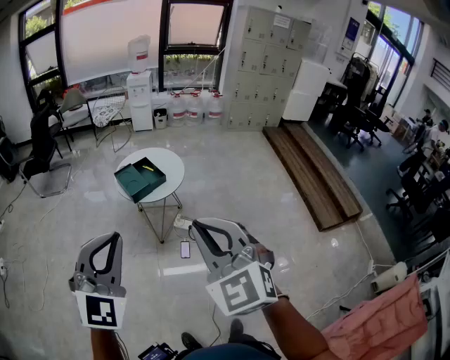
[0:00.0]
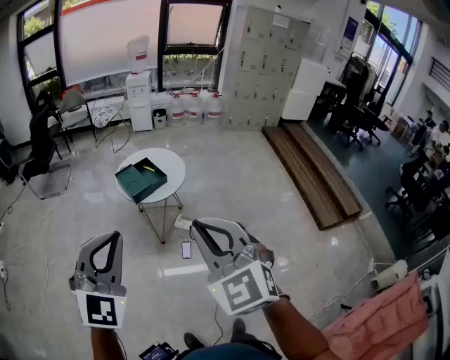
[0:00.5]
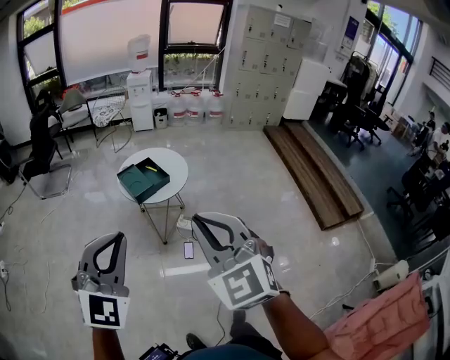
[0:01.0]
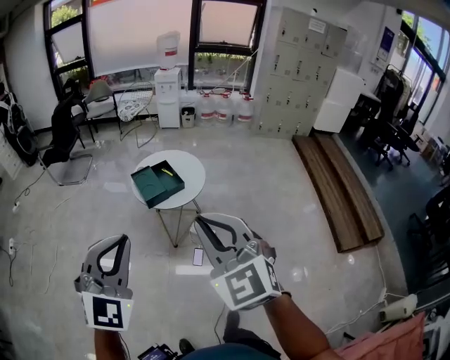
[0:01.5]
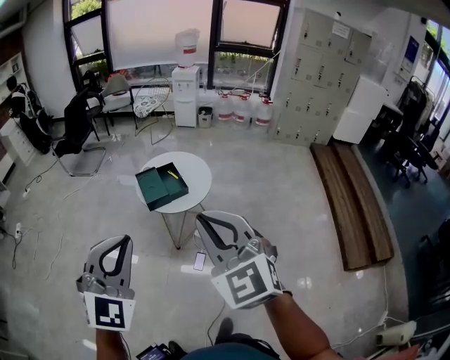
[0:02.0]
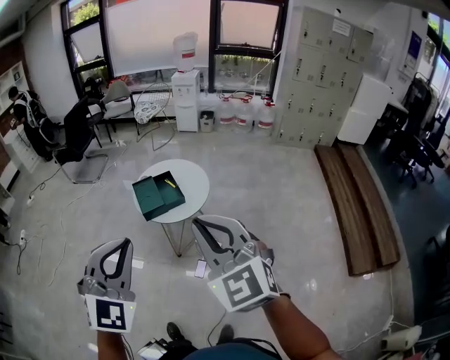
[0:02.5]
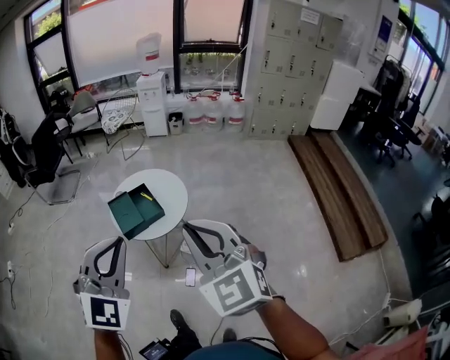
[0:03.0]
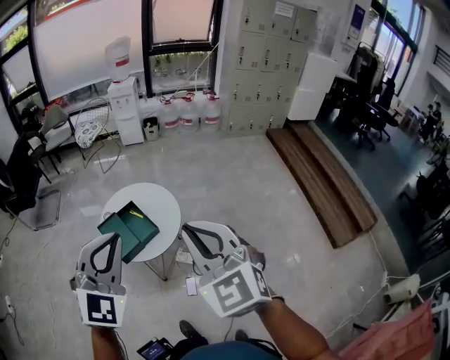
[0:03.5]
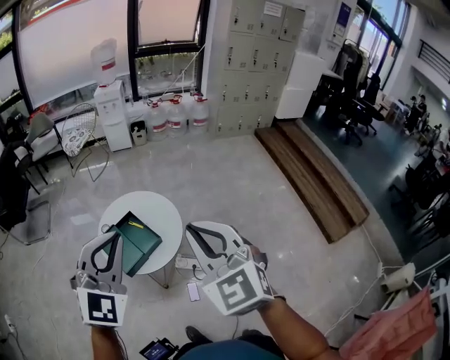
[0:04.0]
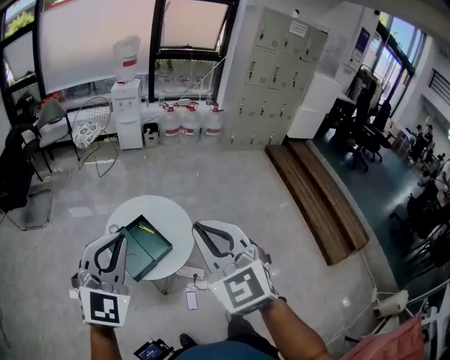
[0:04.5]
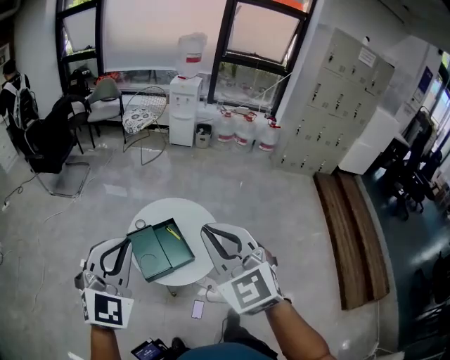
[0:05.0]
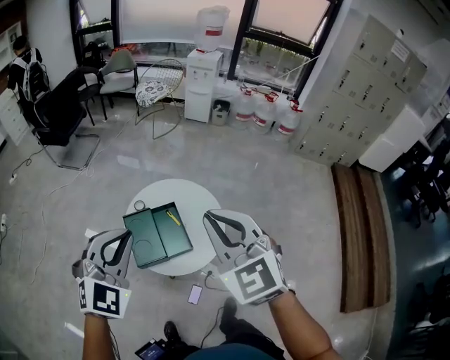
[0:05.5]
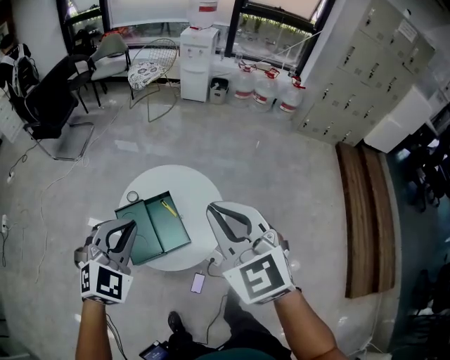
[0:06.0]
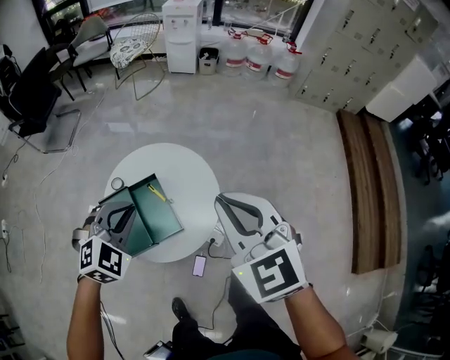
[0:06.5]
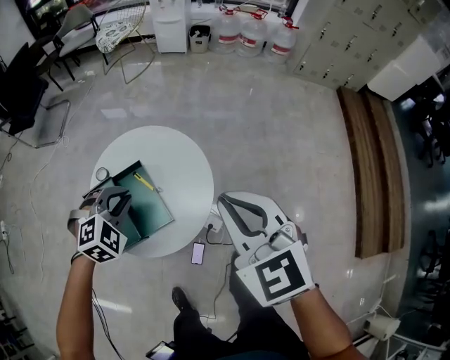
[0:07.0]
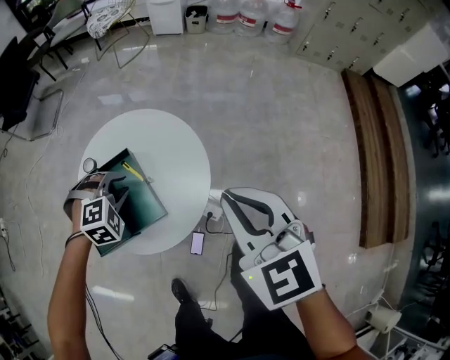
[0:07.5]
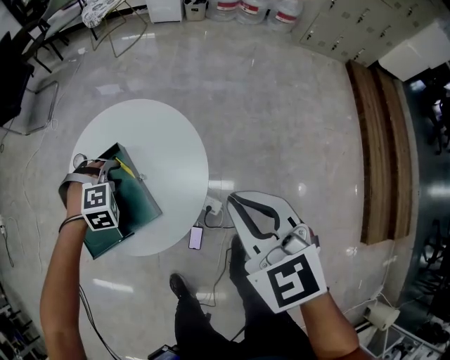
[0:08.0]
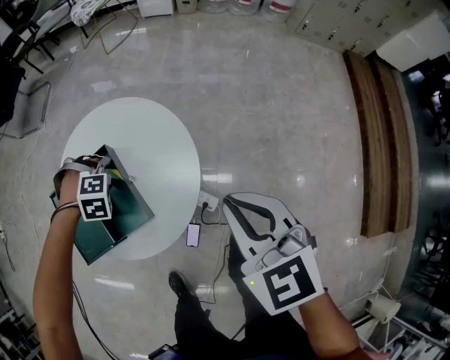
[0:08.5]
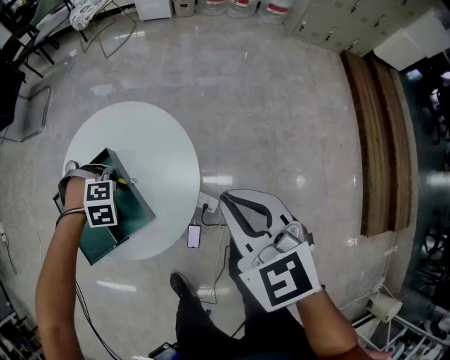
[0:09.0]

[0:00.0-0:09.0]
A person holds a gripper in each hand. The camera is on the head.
0:00.0 to 0:02.0: Both grippers move forward and to the right, about 30 cm.
0:02.0 to 0:04.5: Both grippers are carried forward, approximately 50 cm.
0:04.5 to 0:07.0: The two grippers travel together, forward and to the right, about 40 cm. Both grippers travel together downward, approximately 50 cm. The left gripper points its fingers roughly 50 degrees further downward. Meanwhile the right gripper changes its angle by some 30 degrees.
0:07.0 to 0:09.0: The grippers both shift downward by some 20 cm. The left gripper turns by approximately 40 degrees, and opens and closes again.

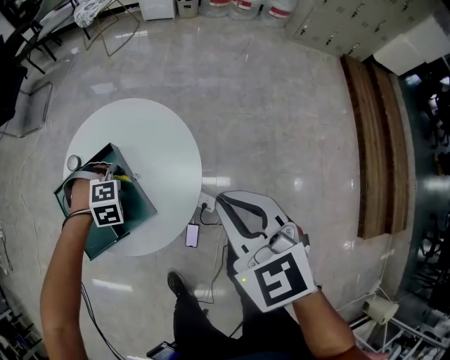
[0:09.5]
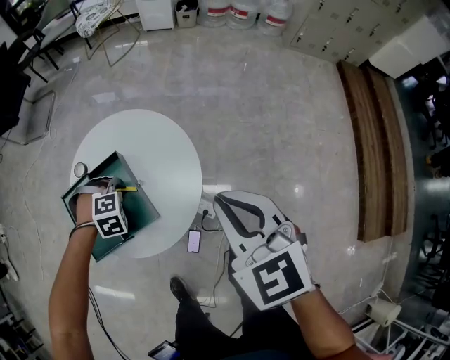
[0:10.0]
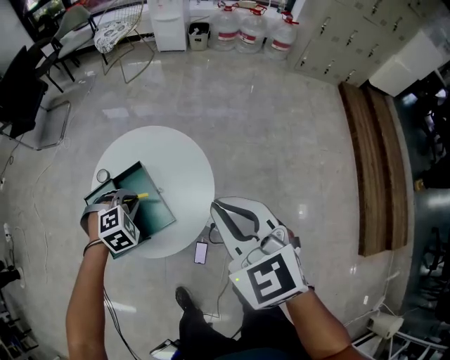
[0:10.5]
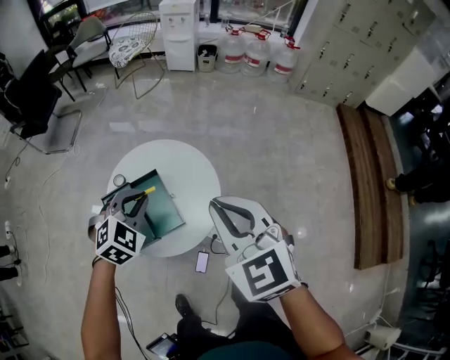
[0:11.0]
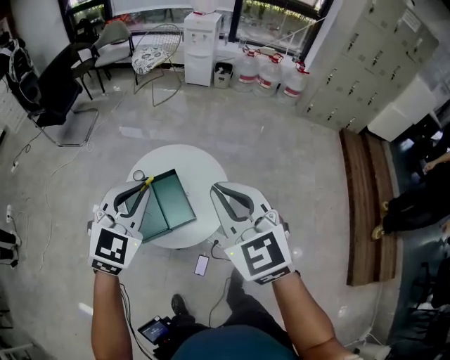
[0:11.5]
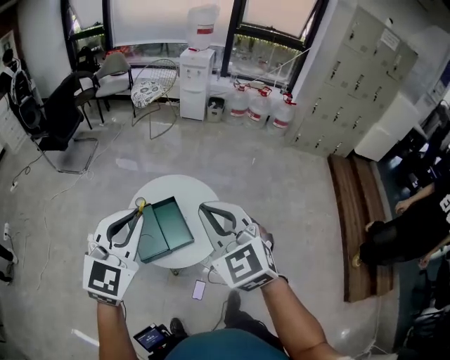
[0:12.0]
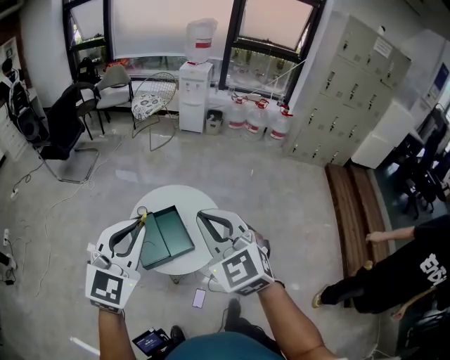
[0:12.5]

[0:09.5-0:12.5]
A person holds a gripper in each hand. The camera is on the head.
0:09.5 to 0:11.0: Both grippers move upward, about 30 cm. The left gripper tips its fingers upward by roughly 30 degrees.
0:11.0 to 0:12.5: The left gripper travels upward and backward by roughly 40 cm, and angles its fingers upward, by some 40 degrees. Meanwhile the right gripper travels upward, backward and to the left by approximately 30 cm.

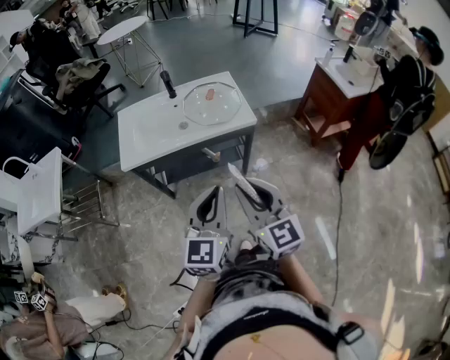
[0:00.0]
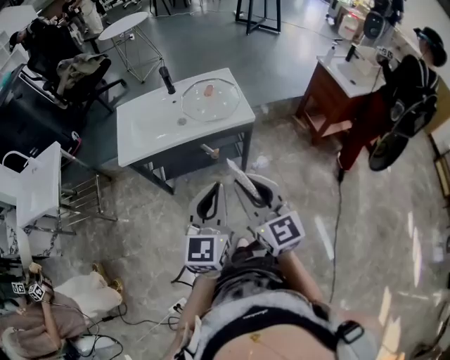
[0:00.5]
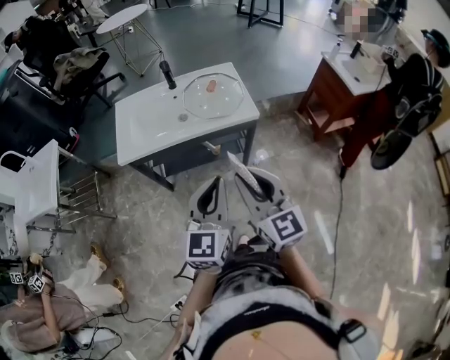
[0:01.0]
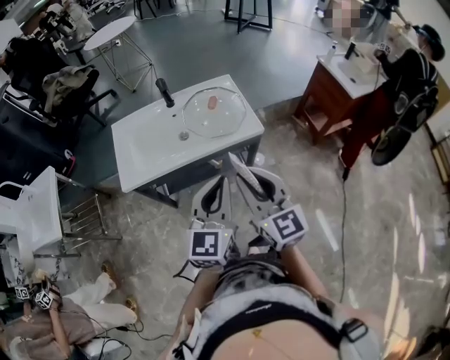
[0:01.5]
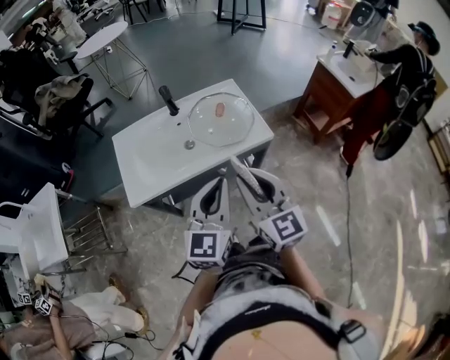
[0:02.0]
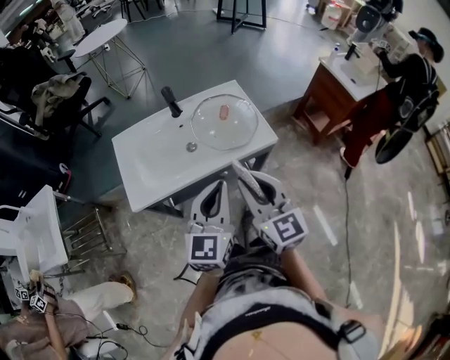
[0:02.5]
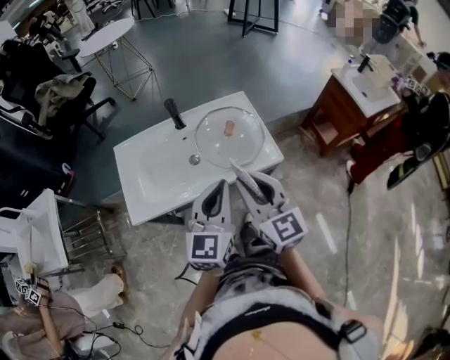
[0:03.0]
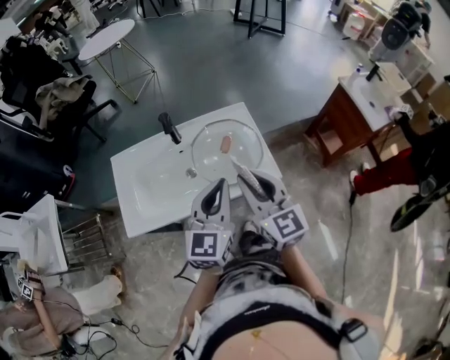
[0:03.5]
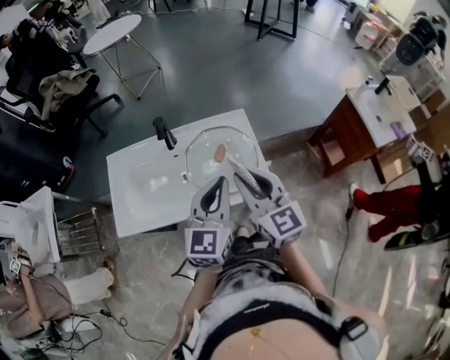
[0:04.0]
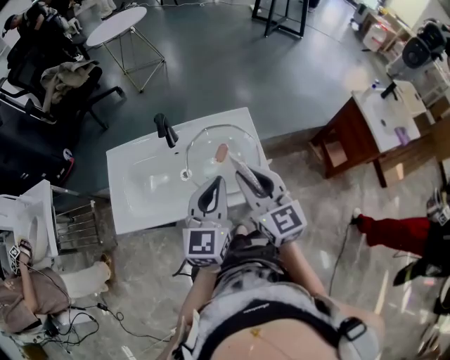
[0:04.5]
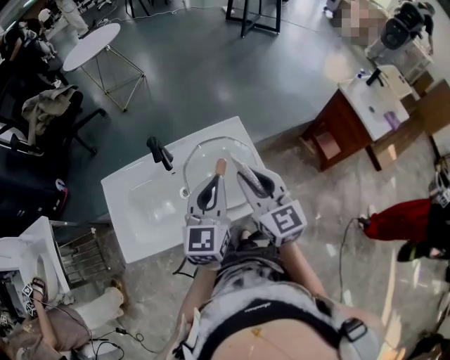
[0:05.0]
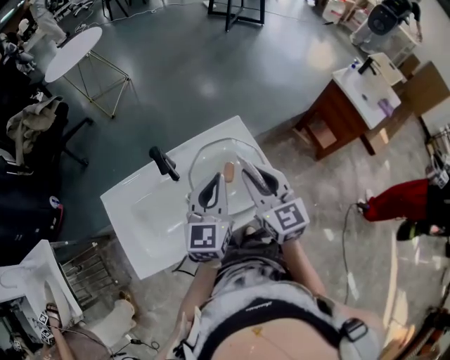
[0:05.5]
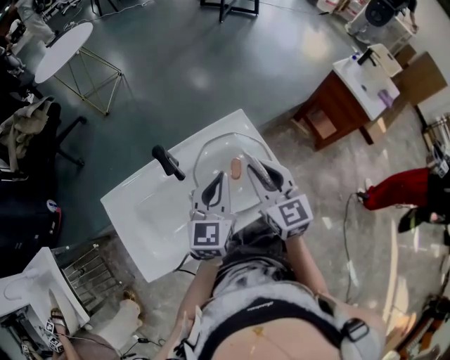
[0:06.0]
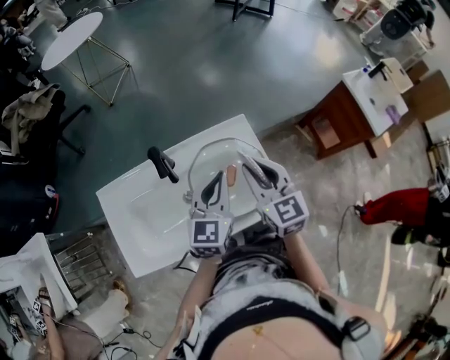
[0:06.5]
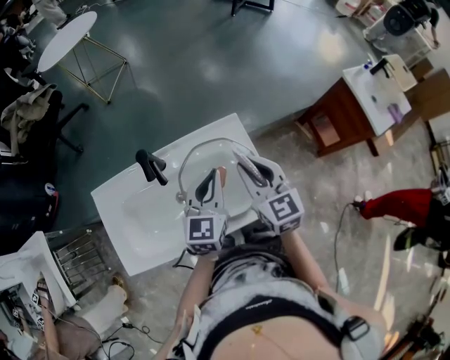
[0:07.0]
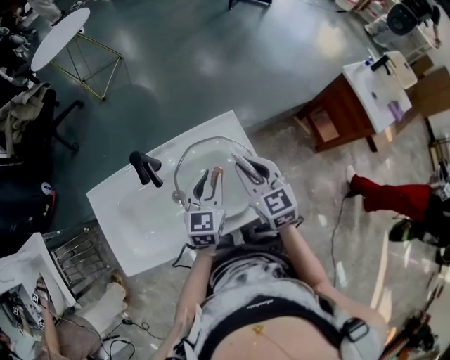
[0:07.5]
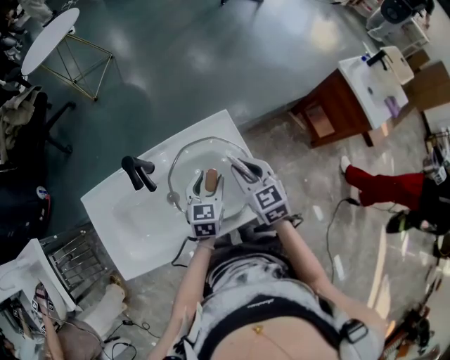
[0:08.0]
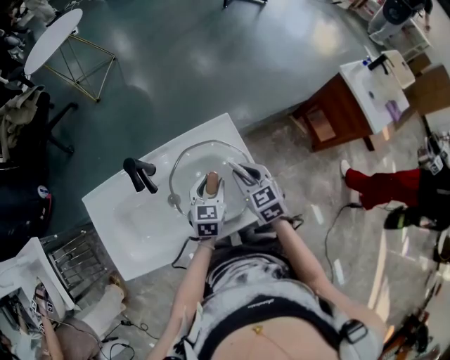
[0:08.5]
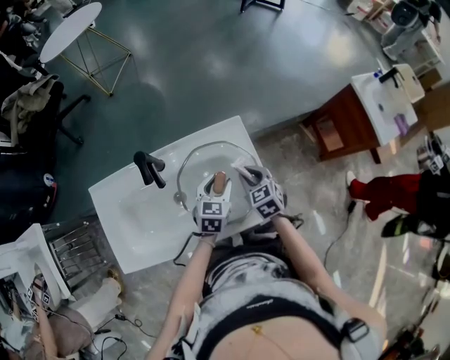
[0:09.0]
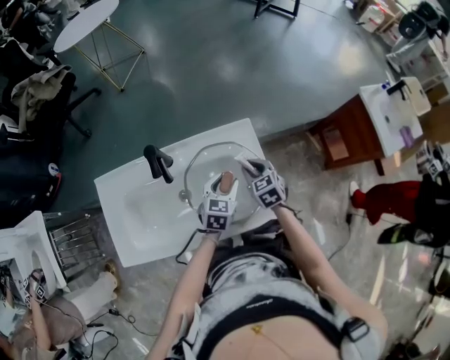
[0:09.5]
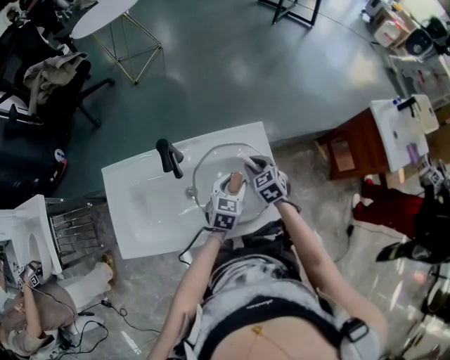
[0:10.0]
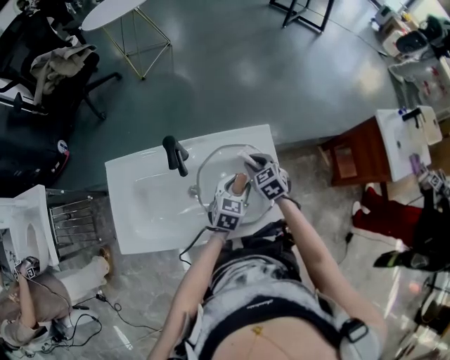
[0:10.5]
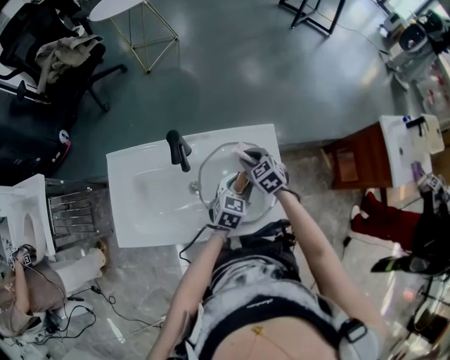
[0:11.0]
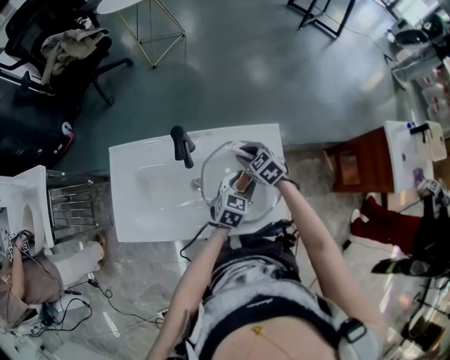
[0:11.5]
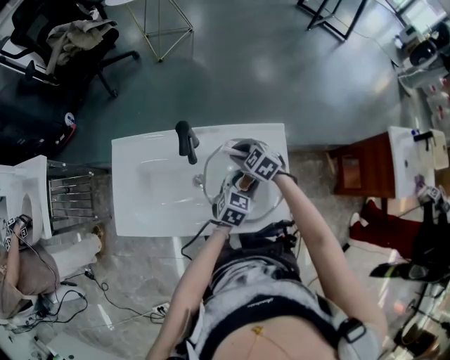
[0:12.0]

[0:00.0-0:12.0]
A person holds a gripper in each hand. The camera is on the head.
0:00.0 to 0:02.0: The left gripper goes approximately 20 cm forward, while the right gripper is displaced forward and to the left by about 20 cm.
0:02.0 to 0:04.0: Both grippers move forward, some 25 cm.
0:04.0 to 0:06.0: The right gripper heads forward and downward, covering roughly 15 cm, and rotates roughly 20 degrees; the left gripper moves forward, to the left and downward, approximately 15 cm.
0:06.0 to 0:08.0: The right gripper heads downward, forward and to the right, covering roughly 15 cm. The left gripper moves downward, approximately 15 cm, changes its angle by some 20 degrees, and opens.
0:08.0 to 0:10.0: The right gripper travels downward by some 10 cm, and rotates approximately 20 degrees.
0:10.0 to 0:12.0: The right gripper travels to the left by about 10 cm, and turns by some 30 degrees.

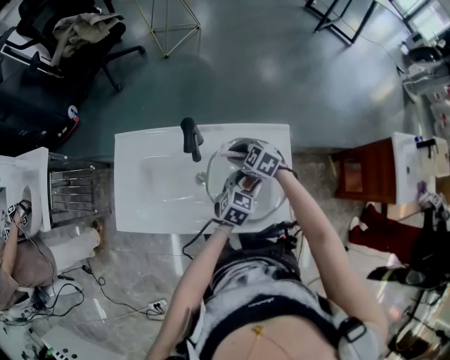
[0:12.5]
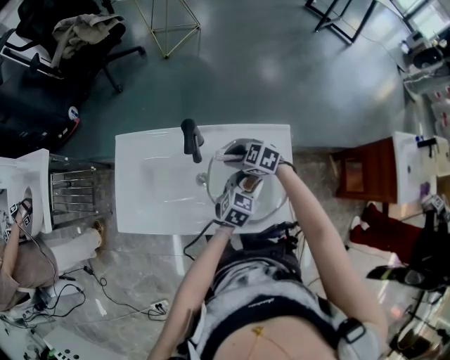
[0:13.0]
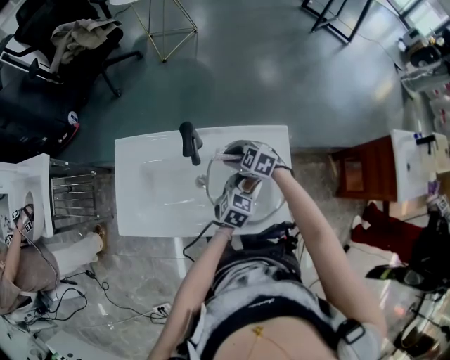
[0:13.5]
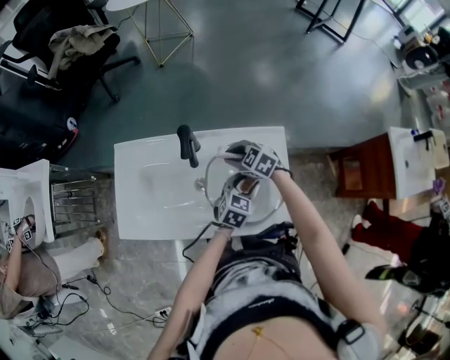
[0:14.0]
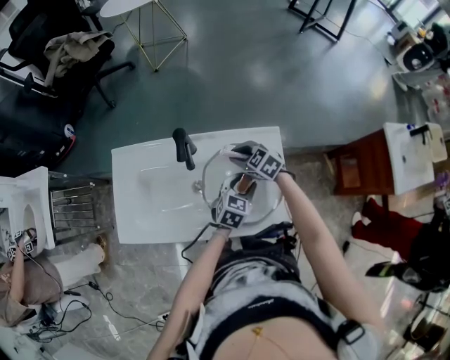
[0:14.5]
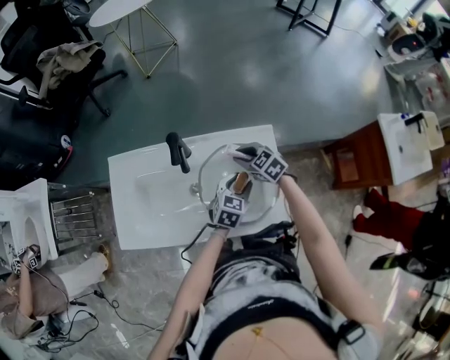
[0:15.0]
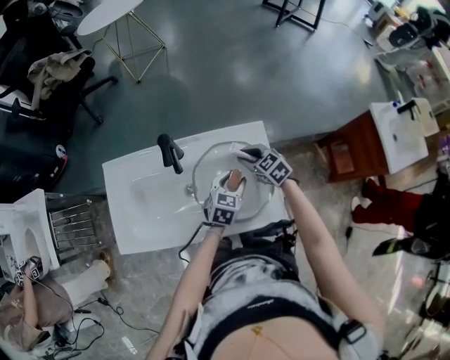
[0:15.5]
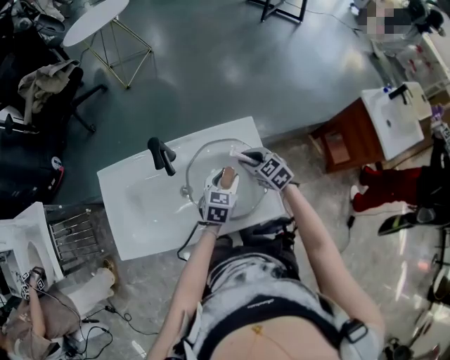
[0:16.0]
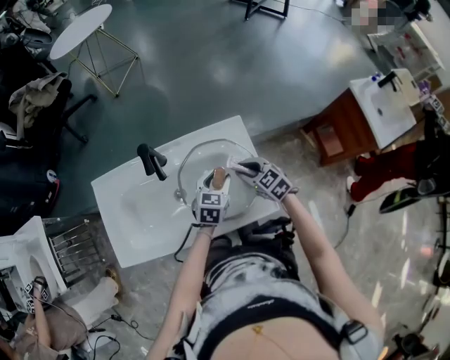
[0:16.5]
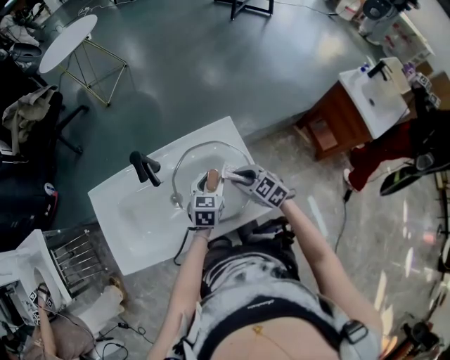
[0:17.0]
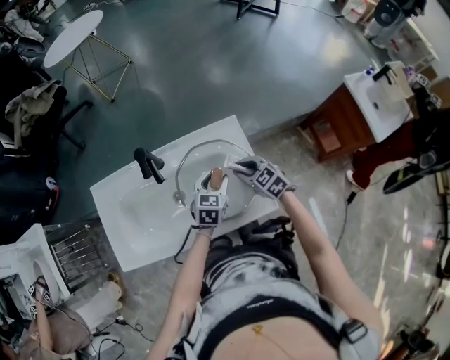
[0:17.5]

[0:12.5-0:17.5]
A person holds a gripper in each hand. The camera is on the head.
0:12.5 to 0:15.0: The right gripper moves to the right, about 5 cm.
0:15.0 to 0:17.5: The right gripper is displaced backward and to the right by about 10 cm.
